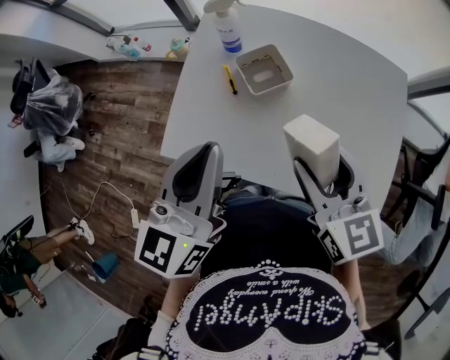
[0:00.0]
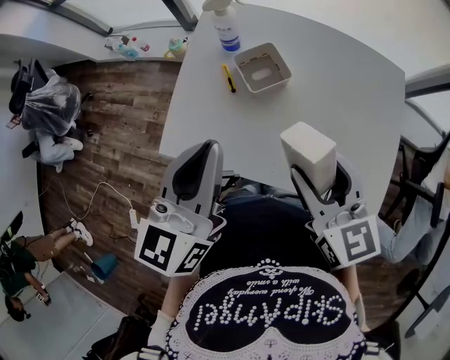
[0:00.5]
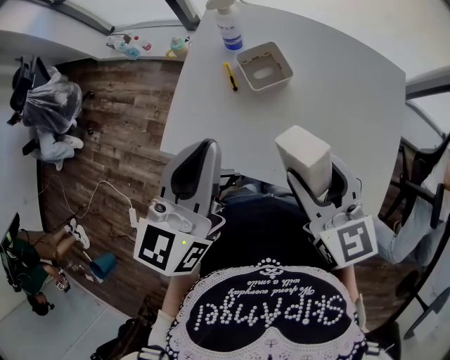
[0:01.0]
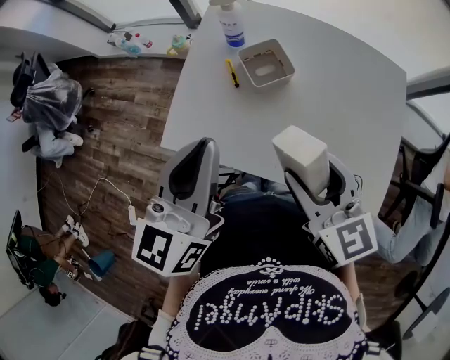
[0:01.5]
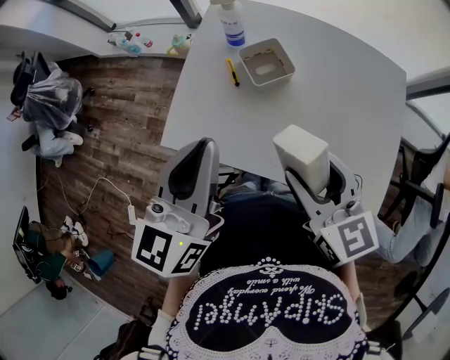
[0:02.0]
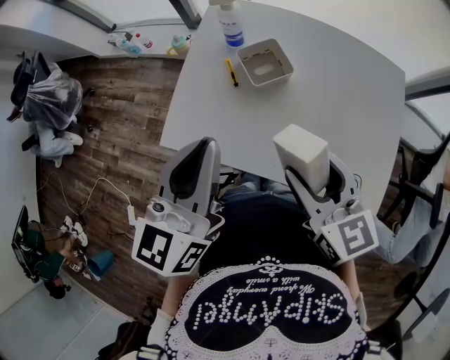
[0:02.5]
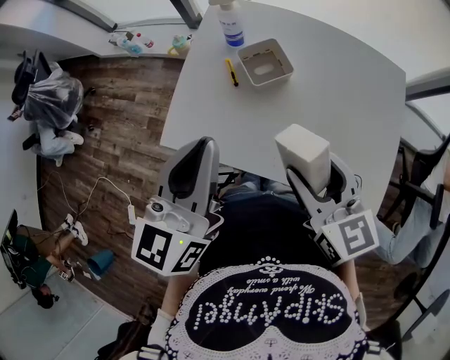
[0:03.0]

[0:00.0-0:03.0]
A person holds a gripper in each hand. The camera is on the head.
0:00.0 to 0:03.0: The grippers stay close to where they were, moving slightly.

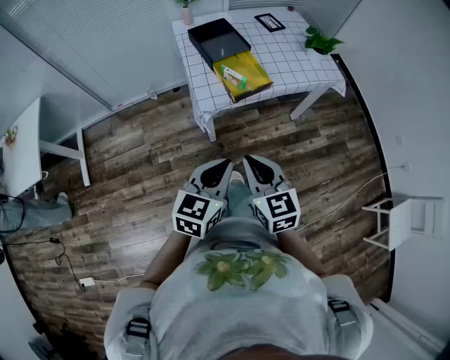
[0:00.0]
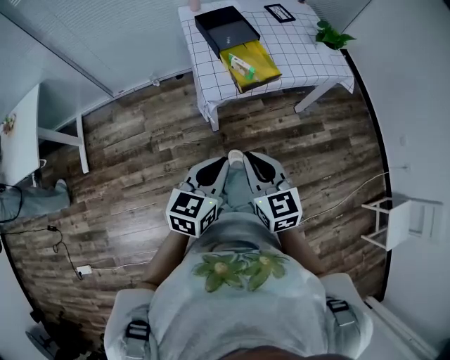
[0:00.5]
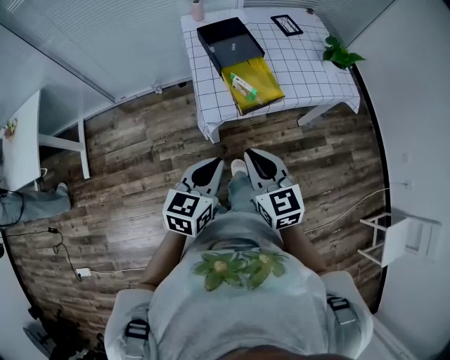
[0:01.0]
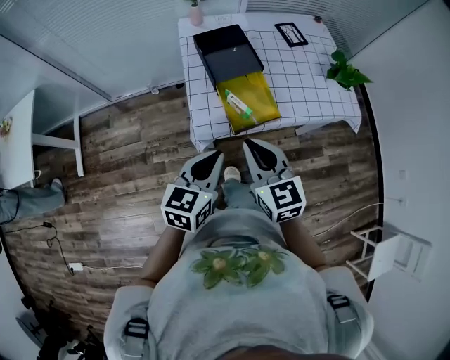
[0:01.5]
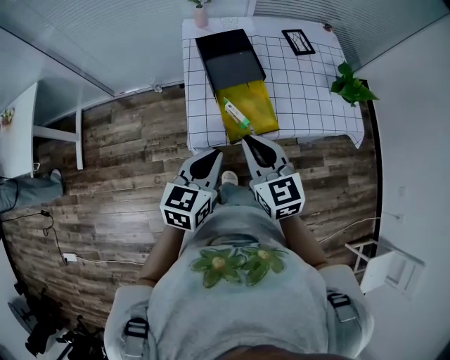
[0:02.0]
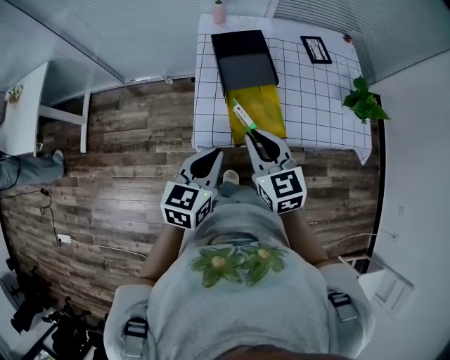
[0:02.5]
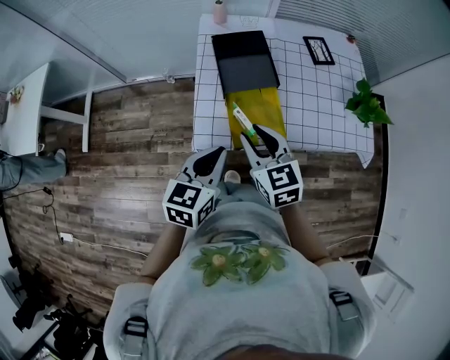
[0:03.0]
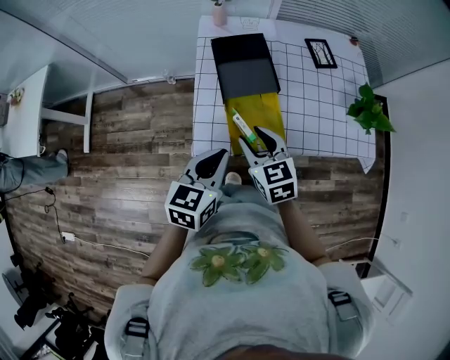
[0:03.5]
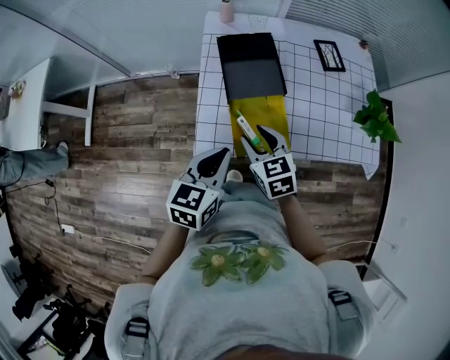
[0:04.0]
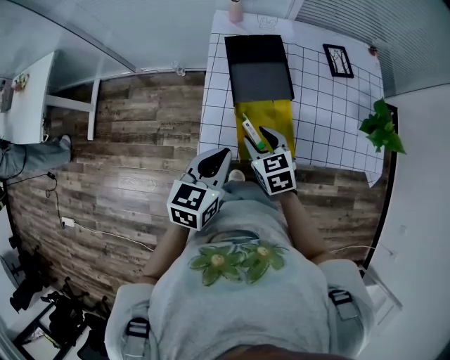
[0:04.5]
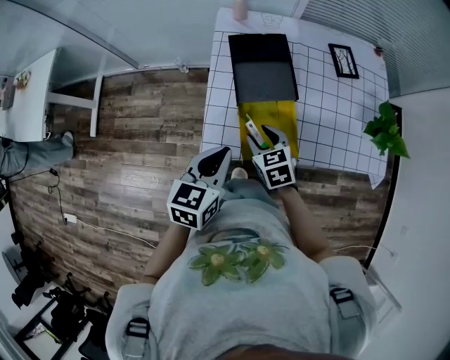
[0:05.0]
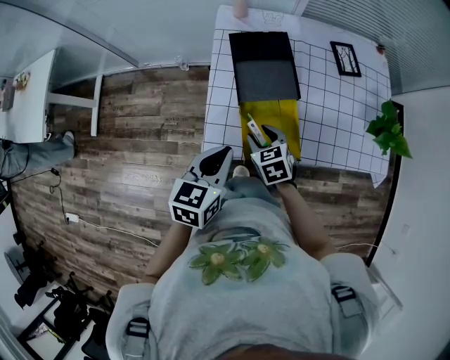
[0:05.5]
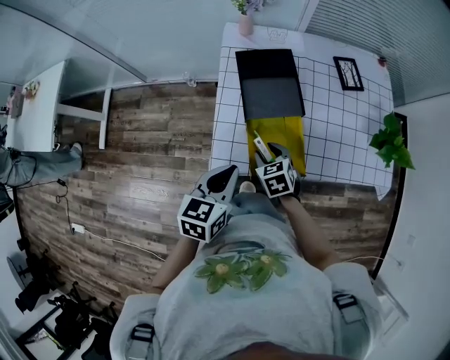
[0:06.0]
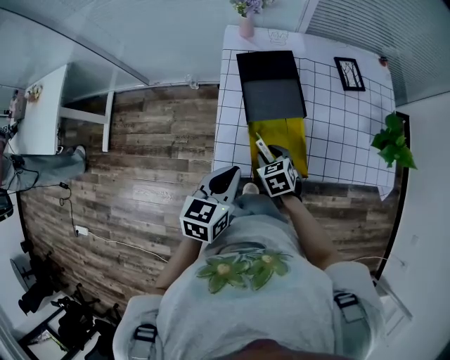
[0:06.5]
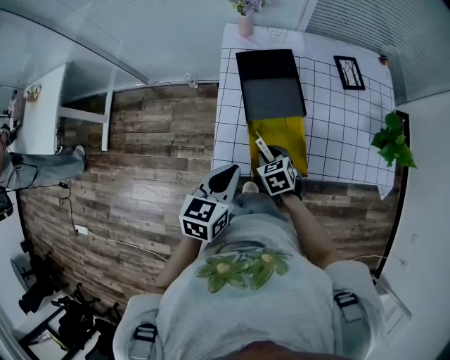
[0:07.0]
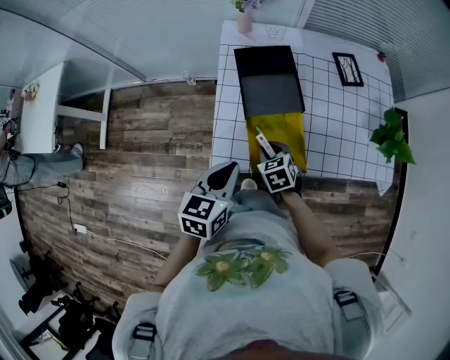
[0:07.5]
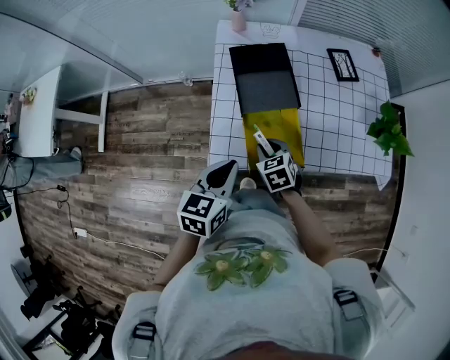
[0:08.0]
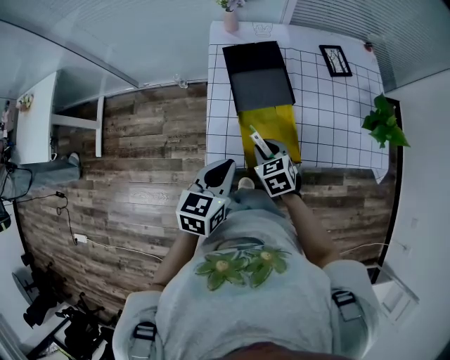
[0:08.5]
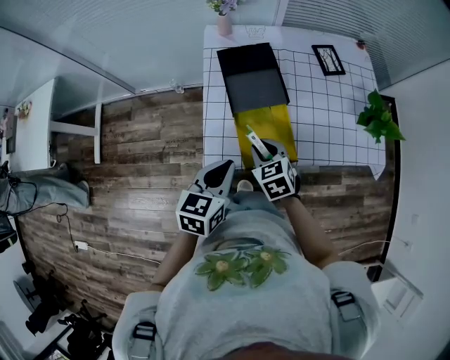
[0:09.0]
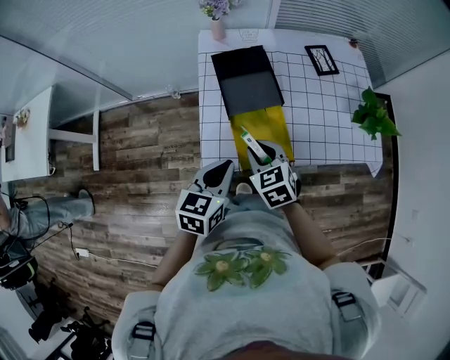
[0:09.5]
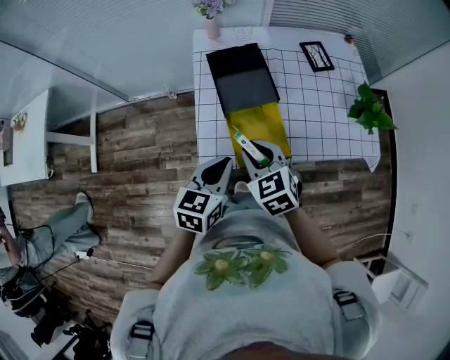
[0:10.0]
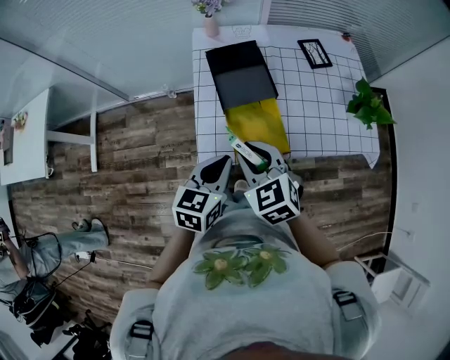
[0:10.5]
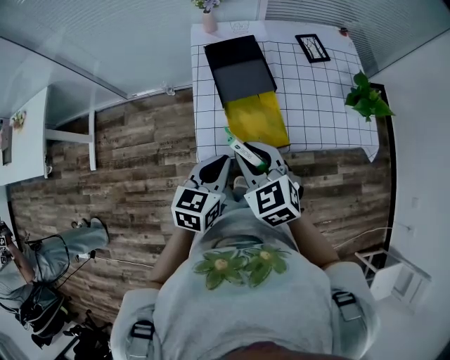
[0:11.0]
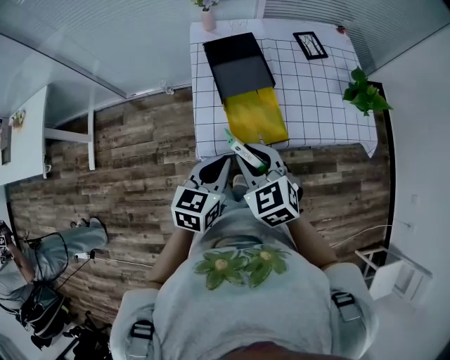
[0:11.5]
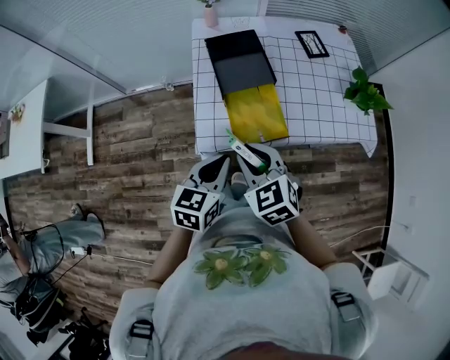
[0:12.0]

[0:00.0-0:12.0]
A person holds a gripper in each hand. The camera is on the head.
0:00.0 to 0:02.0: The two grippers go roughly 25 cm forward.
0:02.0 to 0:04.0: The right gripper is displaced downward and forward by roughly 15 cm, and opens. The left gripper travels forward by approximately 5 cm.
0:04.0 to 0:06.0: The right gripper shifts about 10 cm downward.
0:06.0 to 0:08.0: There are only small adjustments of the grippers.
0:08.0 to 0:10.0: The right gripper is displaced upward by approximately 15 cm.
0:10.0 to 0:12.0: The two grippers go about 10 cm backward.

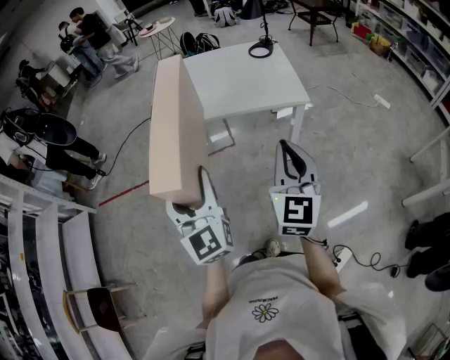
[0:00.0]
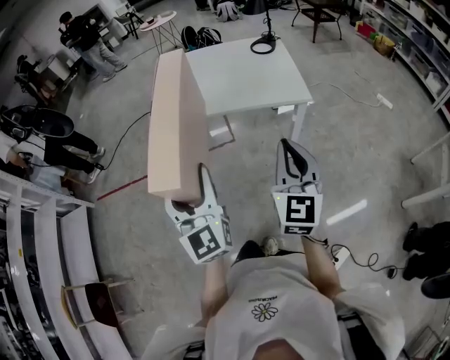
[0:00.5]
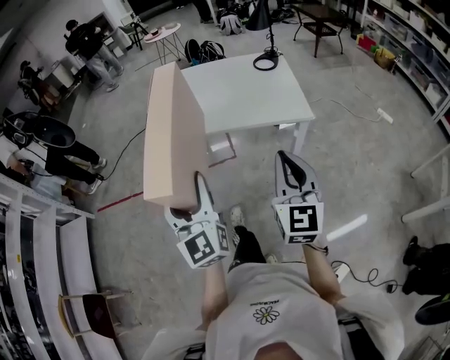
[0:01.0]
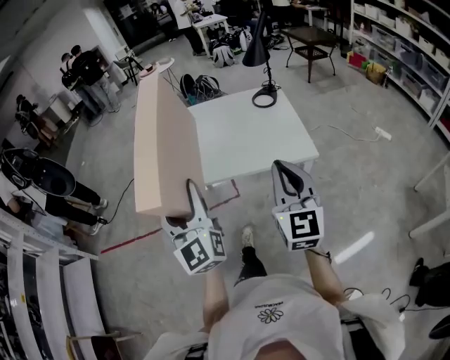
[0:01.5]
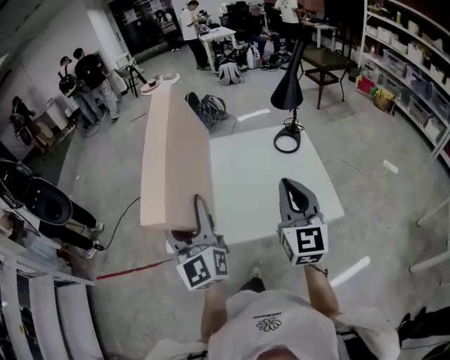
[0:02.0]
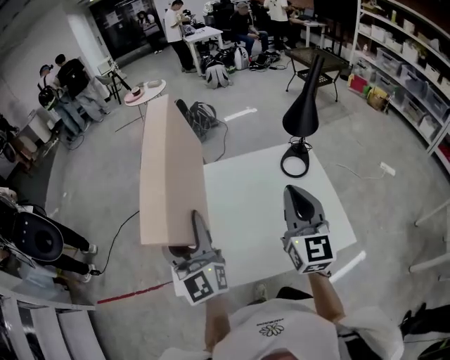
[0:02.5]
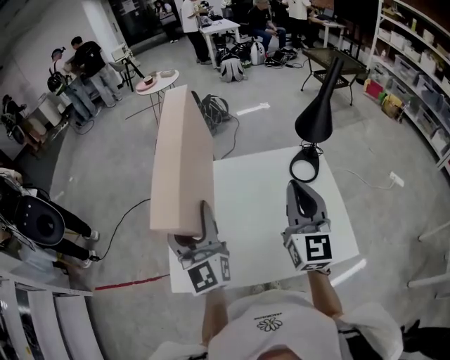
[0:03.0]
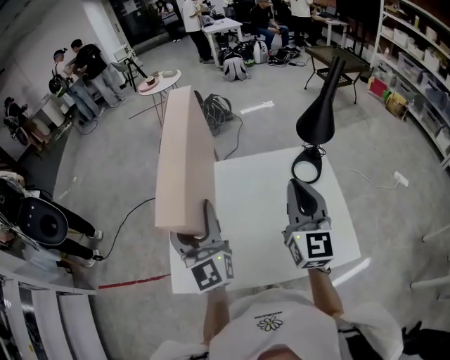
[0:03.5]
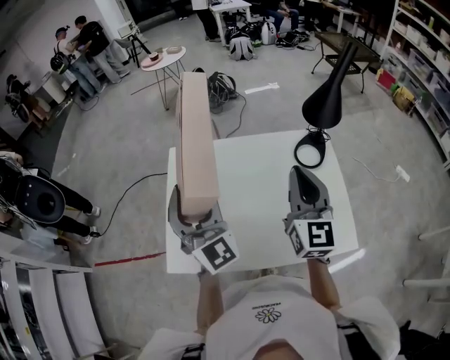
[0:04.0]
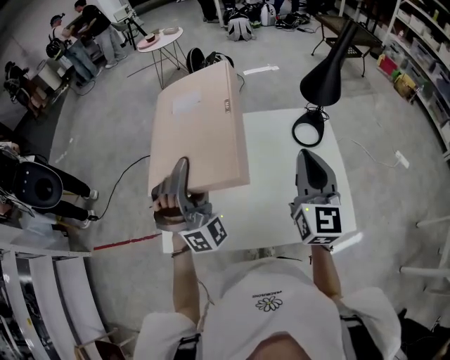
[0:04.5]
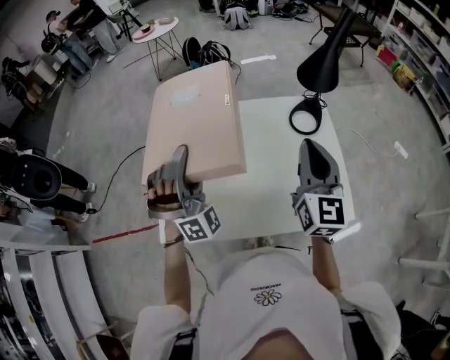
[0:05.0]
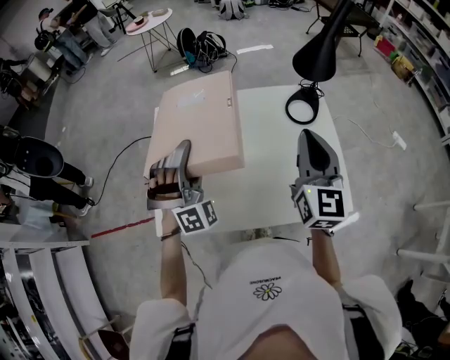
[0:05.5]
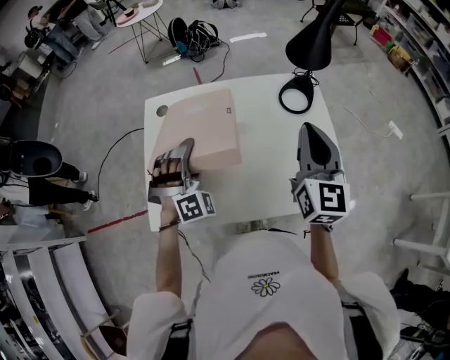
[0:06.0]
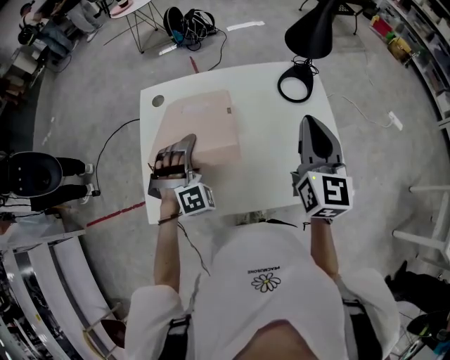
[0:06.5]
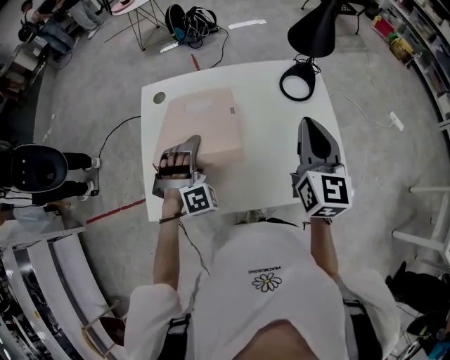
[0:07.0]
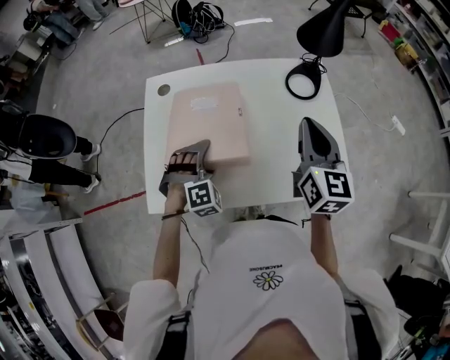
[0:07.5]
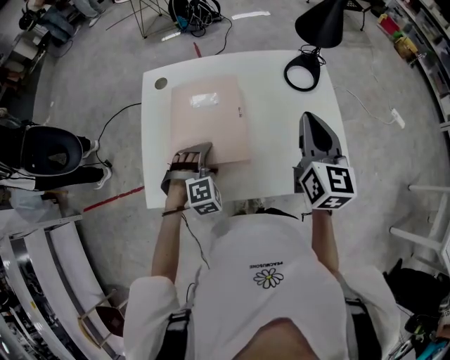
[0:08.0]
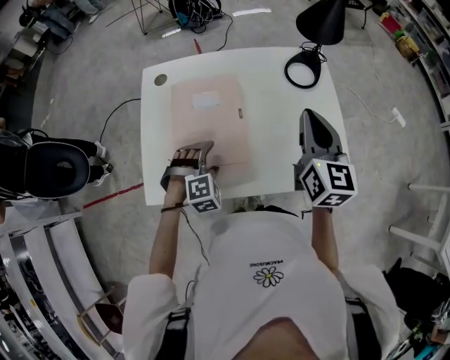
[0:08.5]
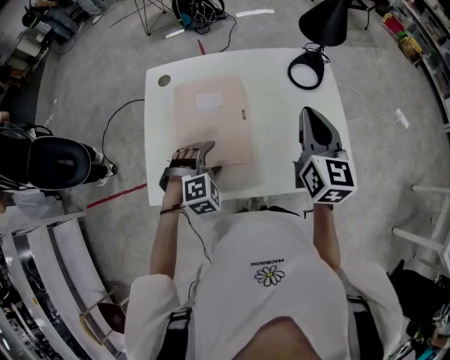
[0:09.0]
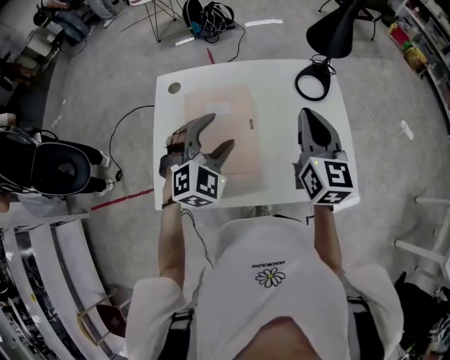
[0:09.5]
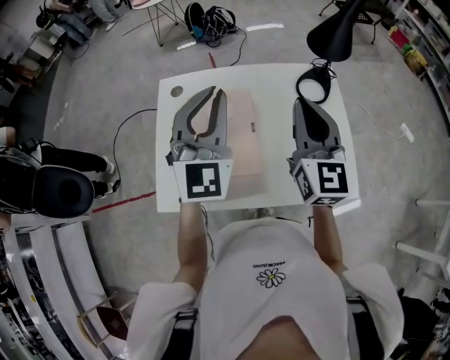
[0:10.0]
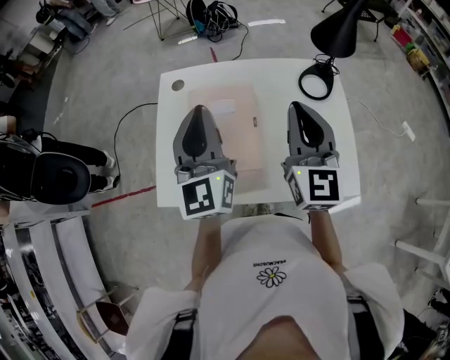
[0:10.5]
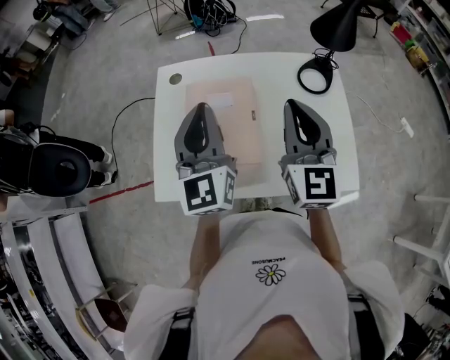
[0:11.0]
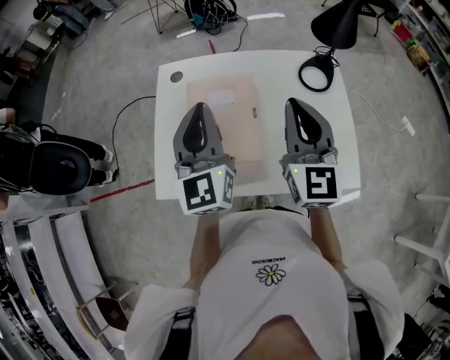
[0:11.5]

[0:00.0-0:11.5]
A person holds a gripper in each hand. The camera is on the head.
0:00.0 to 0:02.0: The two grippers travel together, forward, roughly 40 cm.
0:02.0 to 0:04.0: The grippers both shift forward by roughly 20 cm. The left gripper changes its angle by roughly 40 degrees.
0:04.0 to 0:06.0: The left gripper heads downward, covering some 15 cm, and angles its fingers downward, by some 40 degrees. Meanwhile the right gripper shifts some 5 cm to the right.
0:06.0 to 0:07.5: The left gripper travels downward and backward by some 10 cm, and rotates about 20 degrees.
0:07.5 to 0:09.5: The left gripper goes about 15 cm upward, and swivels roughly 30 degrees.
0:09.5 to 0:11.5: The right gripper heads to the left, covering some 5 cm; the left gripper goes approximately 10 cm upward, angles its fingers upward, by roughly 40 degrees, and closes its fingers.
